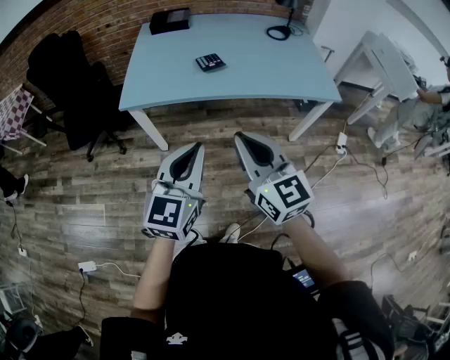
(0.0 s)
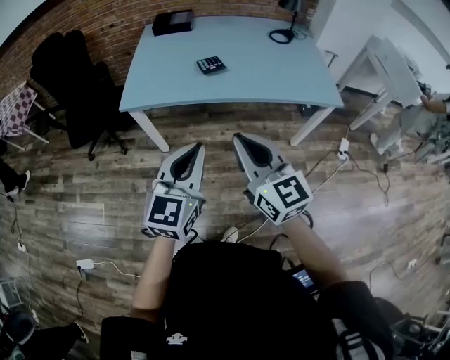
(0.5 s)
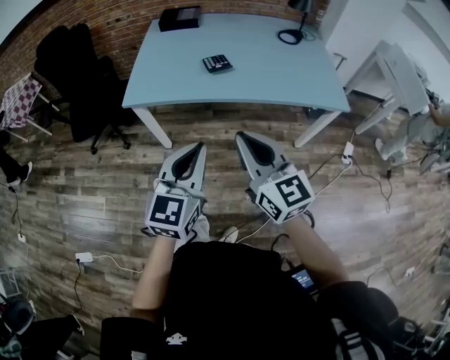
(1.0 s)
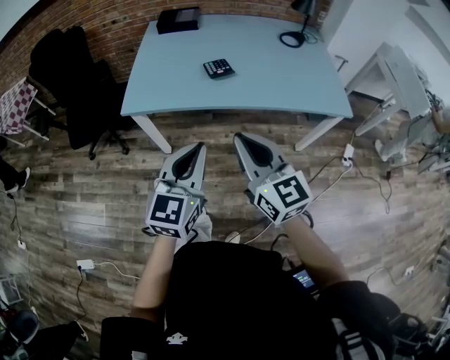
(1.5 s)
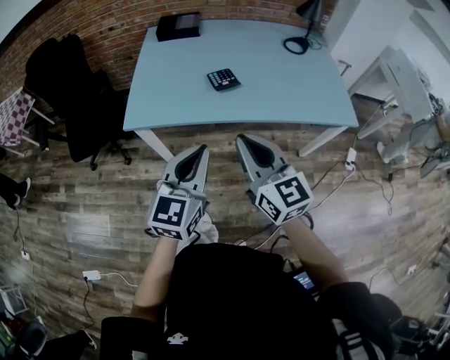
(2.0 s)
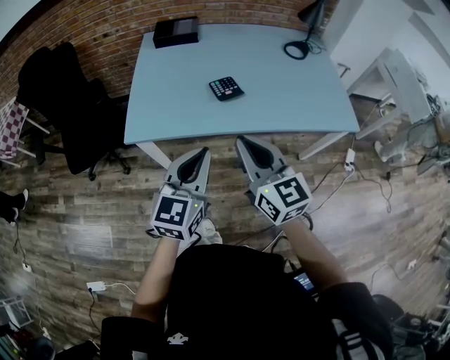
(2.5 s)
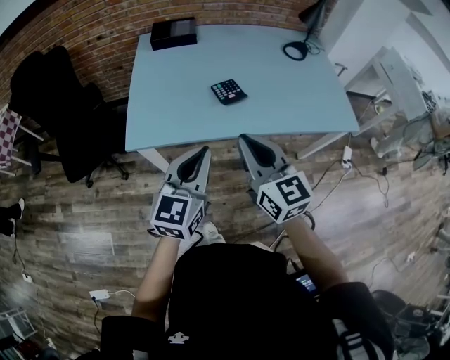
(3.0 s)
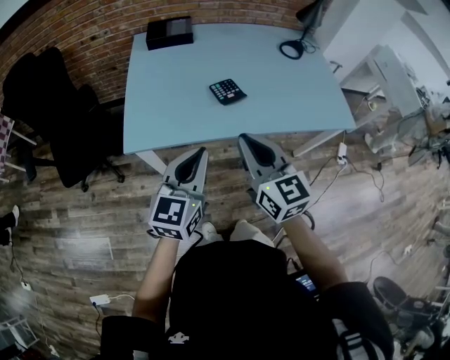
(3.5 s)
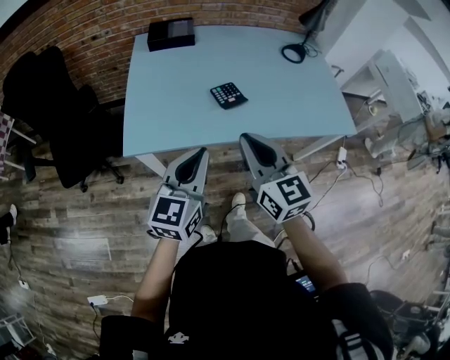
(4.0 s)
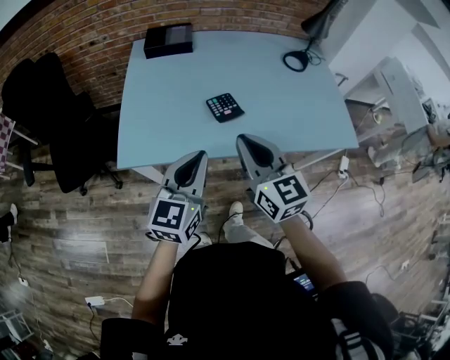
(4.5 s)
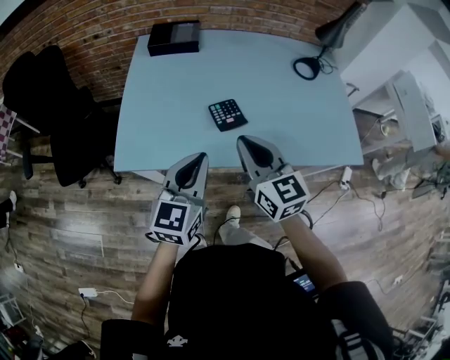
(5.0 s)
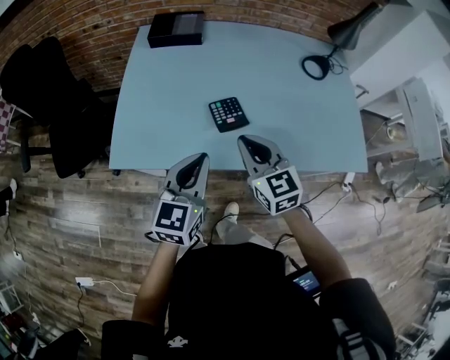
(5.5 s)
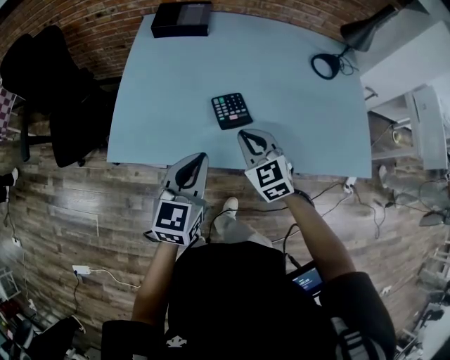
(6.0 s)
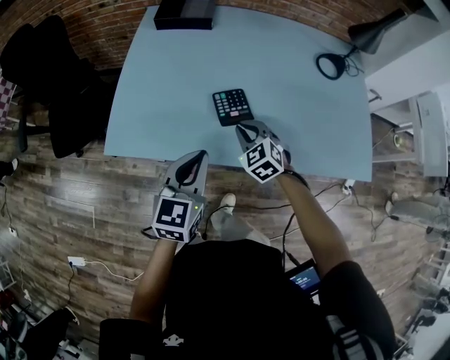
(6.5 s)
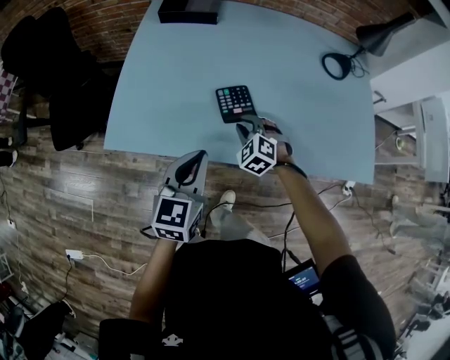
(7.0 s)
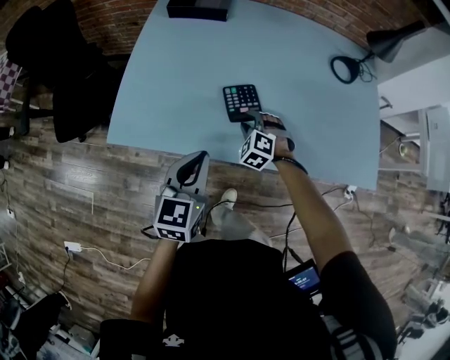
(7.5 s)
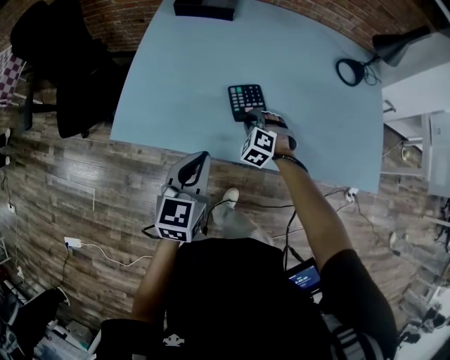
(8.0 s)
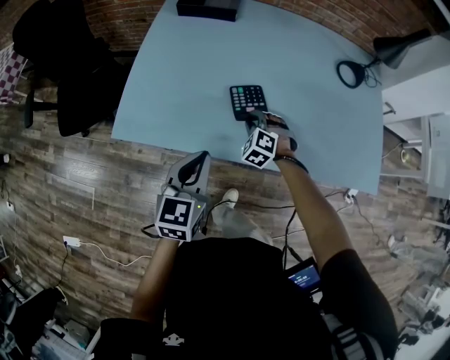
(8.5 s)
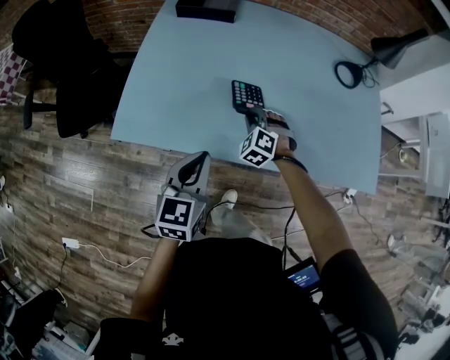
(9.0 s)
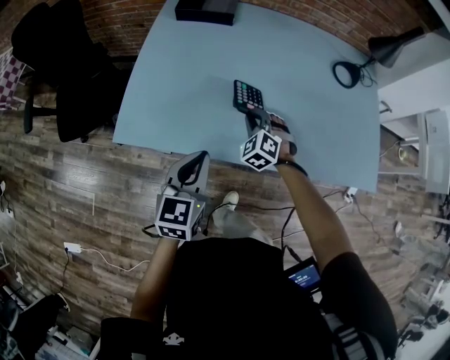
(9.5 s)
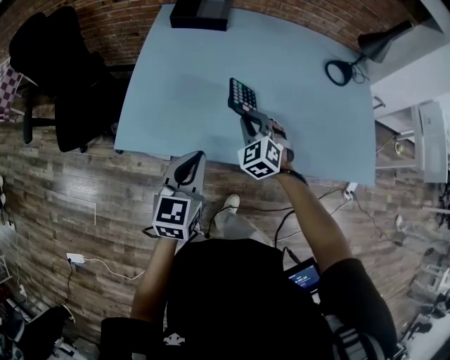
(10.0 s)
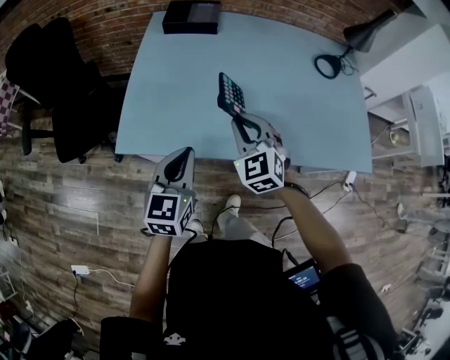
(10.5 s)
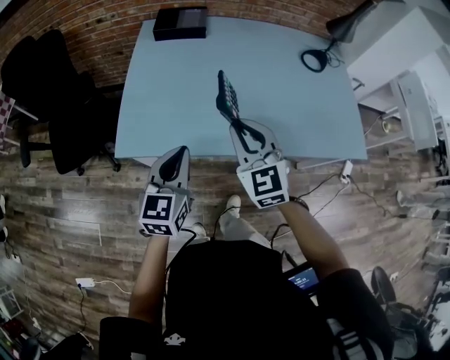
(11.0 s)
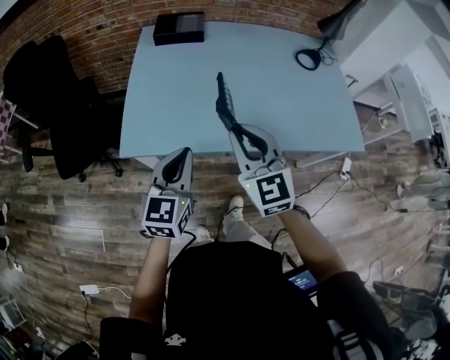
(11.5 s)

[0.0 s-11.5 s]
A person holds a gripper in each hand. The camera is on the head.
0.0 to 2.0 s: Both grippers move forward, some 15 cm.
2.0 to 4.0 s: The two grippers go approximately 15 cm forward and to the left.
4.0 to 6.0 s: The left gripper travels forward, downward and to the right by about 15 cm; the right gripper shifts roughly 25 cm forward and downward, and swivels about 30 degrees.
6.0 to 7.5 s: The right gripper heads downward, covering roughly 15 cm, swivels roughly 40 degrees, and opens its fingers.
7.5 to 9.5 s: The right gripper goes some 5 cm upward.
9.5 to 11.5 s: The left gripper is displaced upward, to the left and backward by about 10 cm, while the right gripper moves upward and backward, roughly 30 cm, and points its fingers roughly 30 degrees further upward.

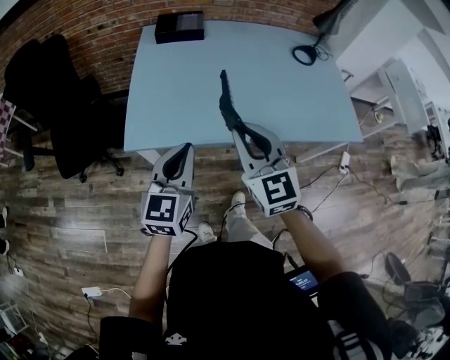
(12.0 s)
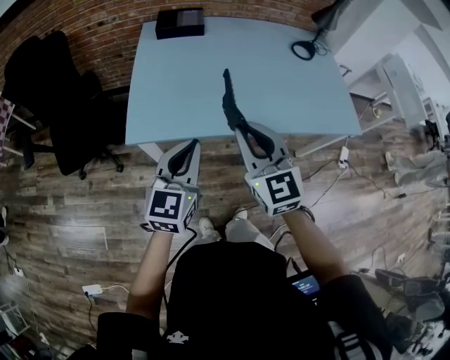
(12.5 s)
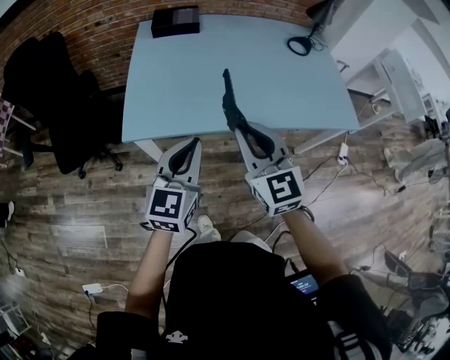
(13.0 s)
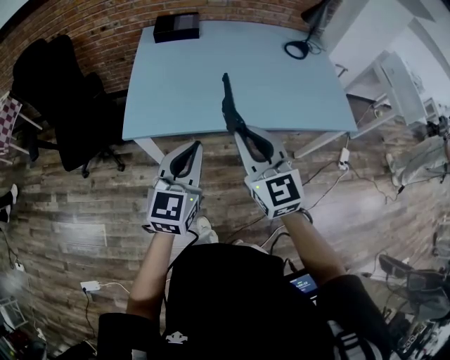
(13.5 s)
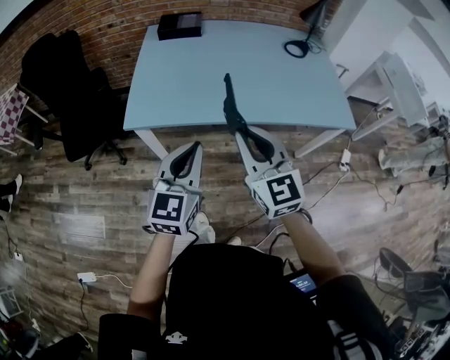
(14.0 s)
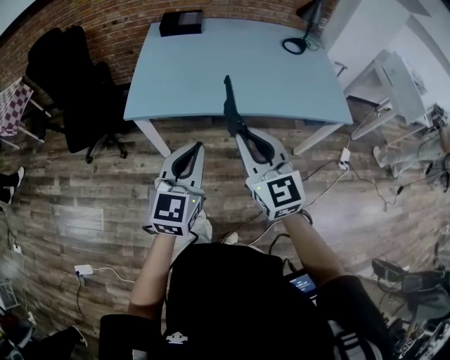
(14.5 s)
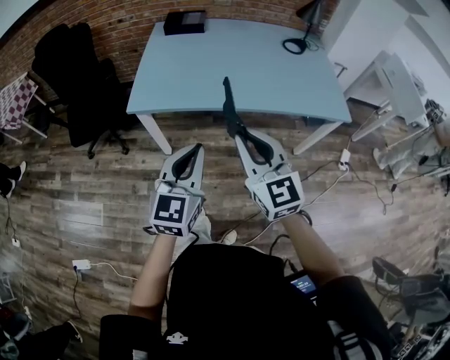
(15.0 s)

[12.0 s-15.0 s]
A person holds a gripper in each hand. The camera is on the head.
12.0 to 13.5 s: The right gripper travels backward by about 10 cm, while the left gripper heads backward and to the right, covering approximately 10 cm.
13.5 to 15.0 s: Both grippers move backward, about 15 cm.

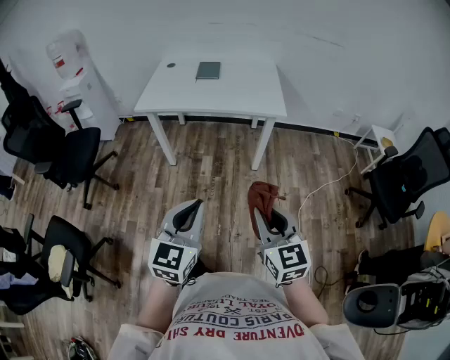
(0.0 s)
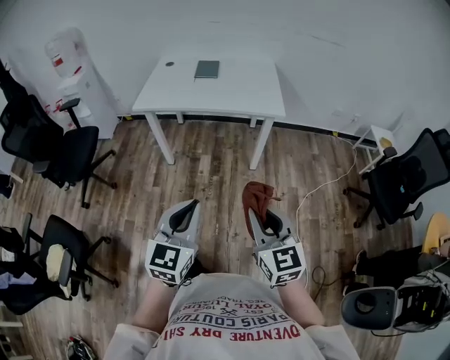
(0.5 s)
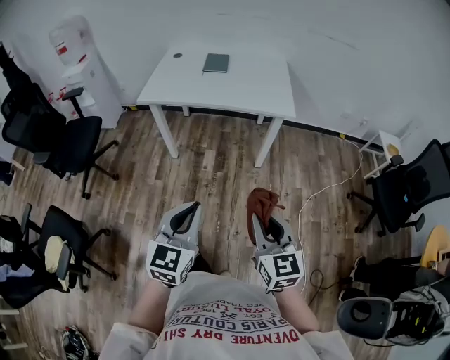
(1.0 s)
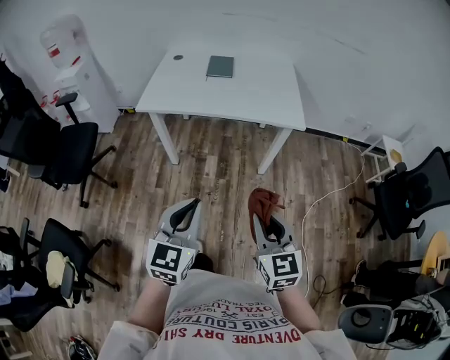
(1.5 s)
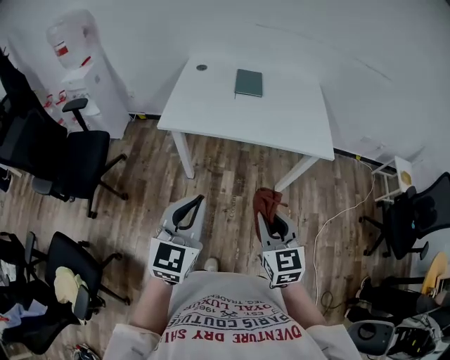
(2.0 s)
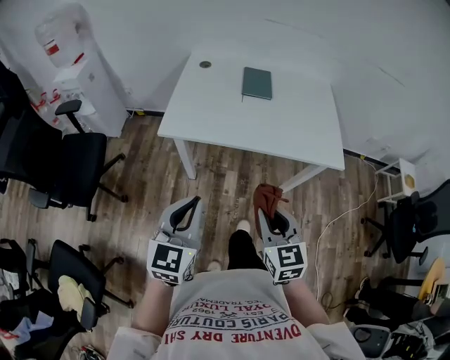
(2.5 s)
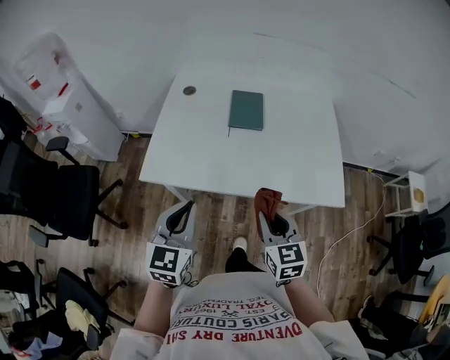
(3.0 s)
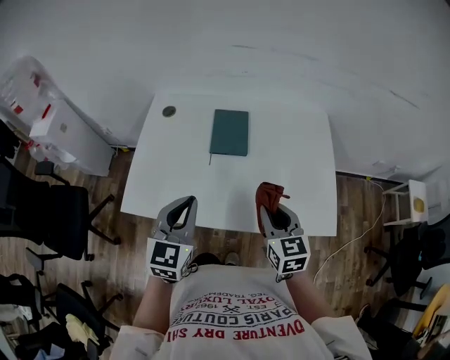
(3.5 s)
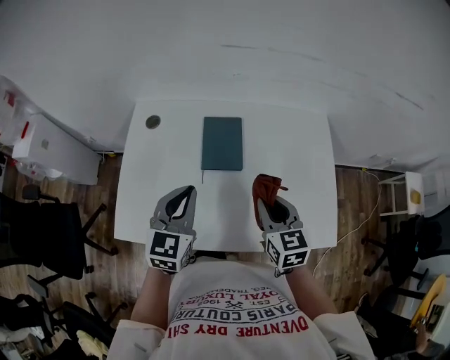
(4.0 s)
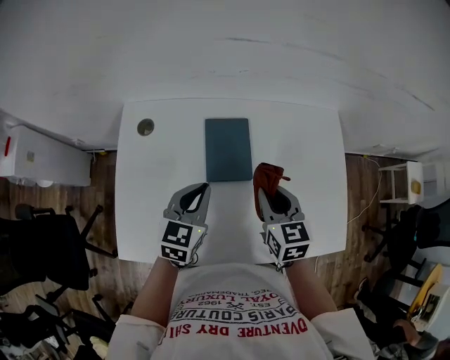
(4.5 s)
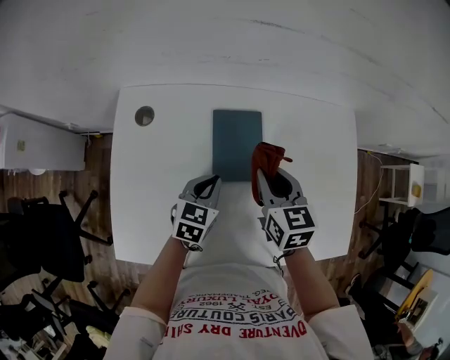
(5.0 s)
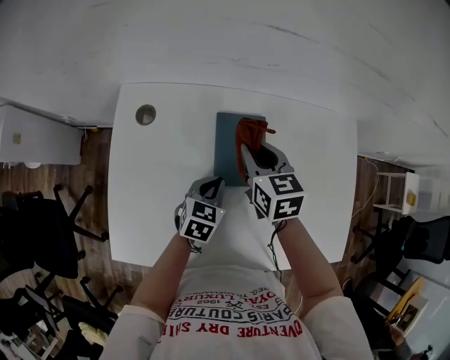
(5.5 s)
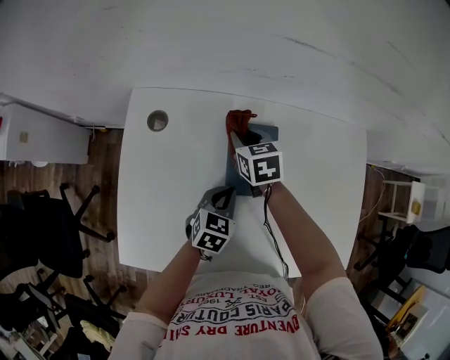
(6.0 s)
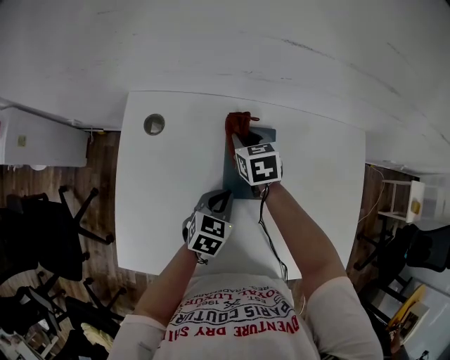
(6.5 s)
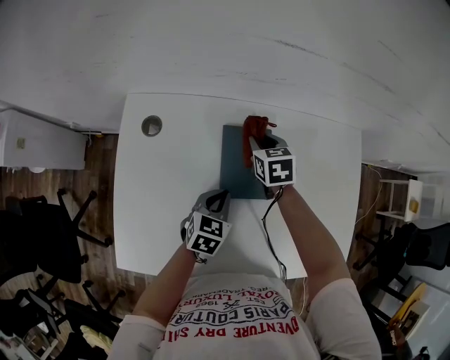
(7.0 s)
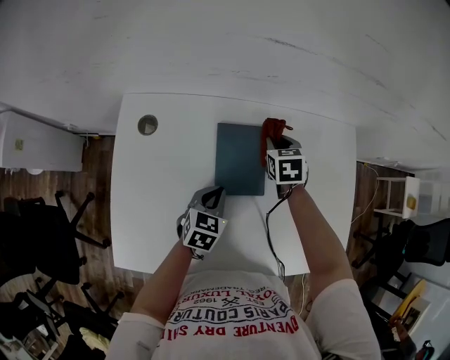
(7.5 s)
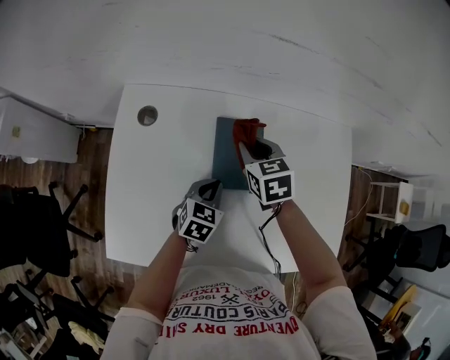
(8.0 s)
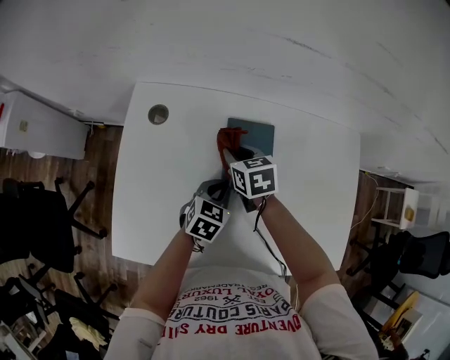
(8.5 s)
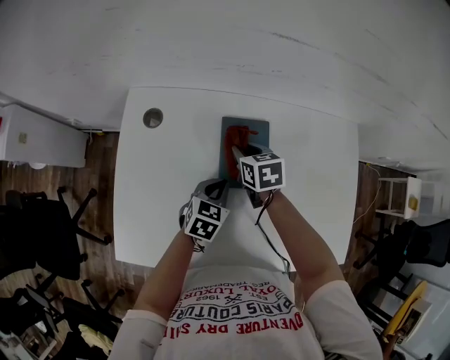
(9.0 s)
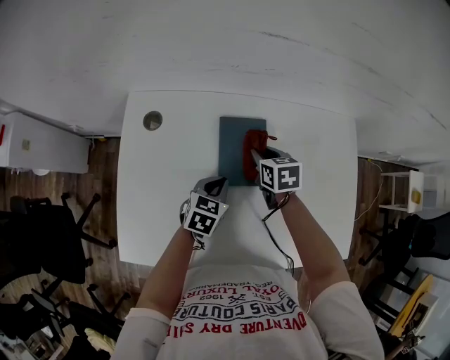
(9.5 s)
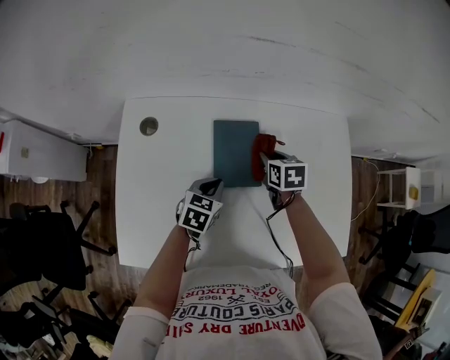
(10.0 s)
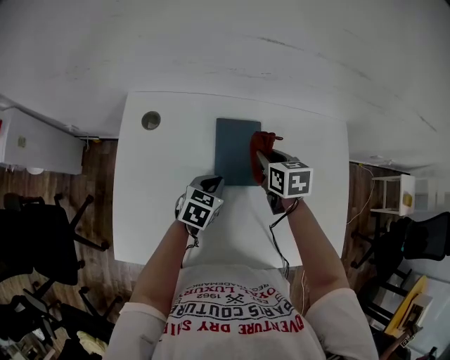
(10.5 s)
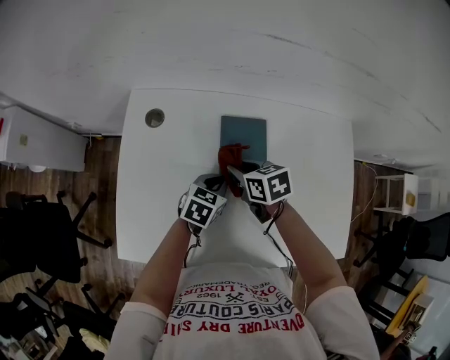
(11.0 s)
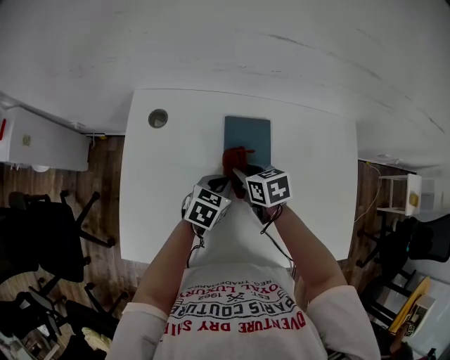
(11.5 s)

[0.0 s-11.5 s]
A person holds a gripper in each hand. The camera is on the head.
0.0 to 2.0 s: Both grippers move forward and to the left, about 30 cm.
2.0 to 4.0 s: Both grippers are carried forward, some 60 cm.
4.0 to 6.0 s: The right gripper heads forward, to the left and downward, covering roughly 40 cm; the left gripper is displaced downward and forward by some 25 cm, and turns by approximately 30 degrees.
6.0 to 7.5 s: The right gripper travels to the right by approximately 15 cm.
7.5 to 9.5 s: The right gripper heads backward, covering some 5 cm, and travels to the left and back again, roughly 15 cm each way.
9.5 to 11.5 s: The right gripper shifts about 10 cm to the left and backward.

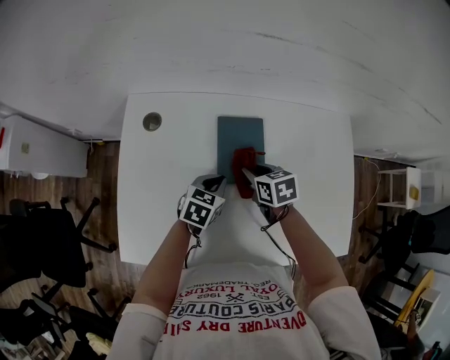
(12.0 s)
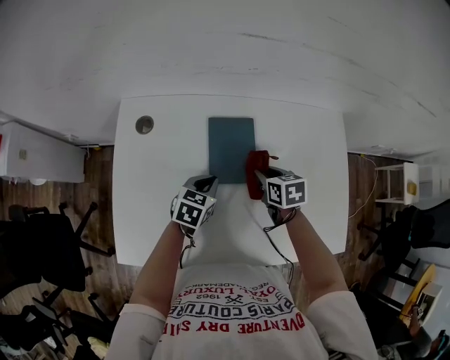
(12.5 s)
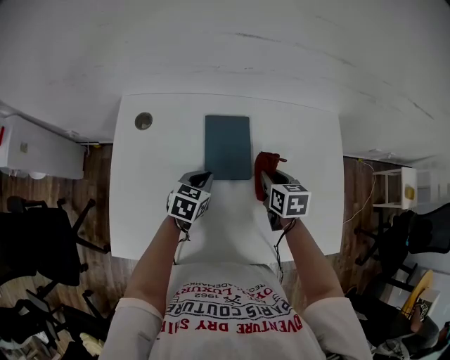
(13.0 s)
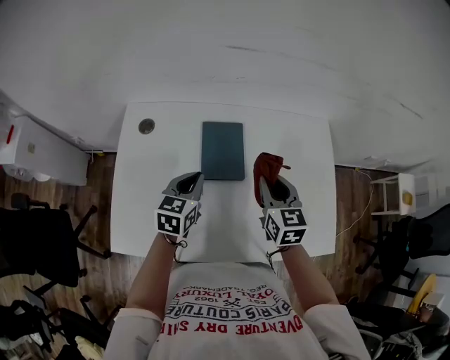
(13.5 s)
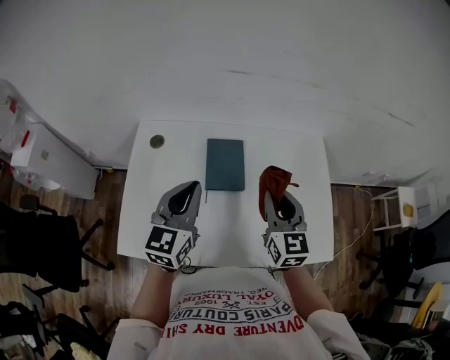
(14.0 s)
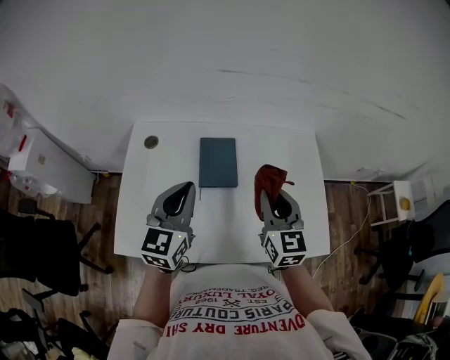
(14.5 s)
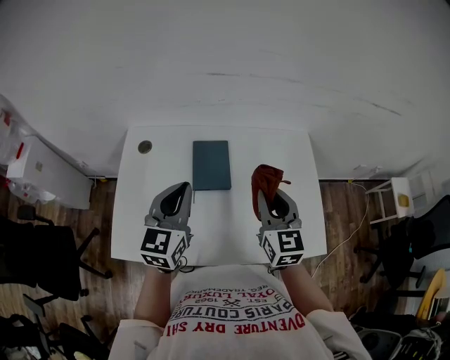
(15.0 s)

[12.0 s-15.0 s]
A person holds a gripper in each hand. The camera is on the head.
12.0 to 13.5 s: The left gripper moves upward, approximately 10 cm; the right gripper shifts some 20 cm upward and to the right, and turns by approximately 30 degrees.
13.5 to 15.0 s: The grippers both shift upward and backward by roughly 15 cm. The left gripper rotates about 20 degrees.
